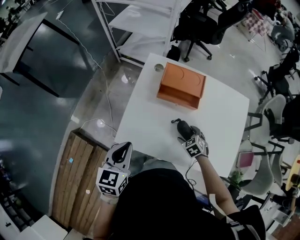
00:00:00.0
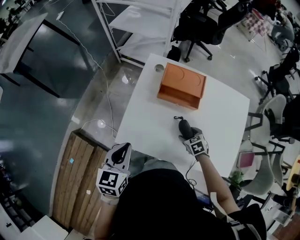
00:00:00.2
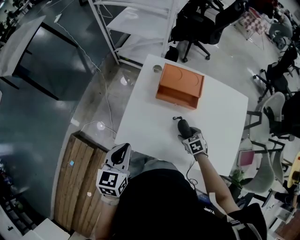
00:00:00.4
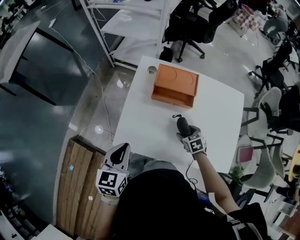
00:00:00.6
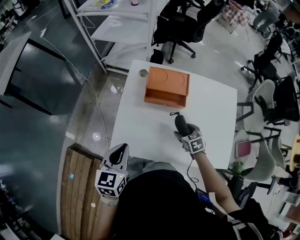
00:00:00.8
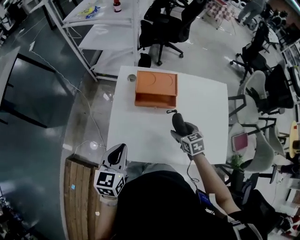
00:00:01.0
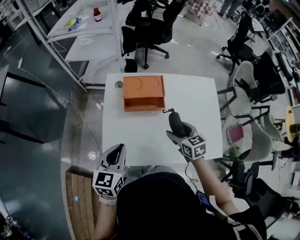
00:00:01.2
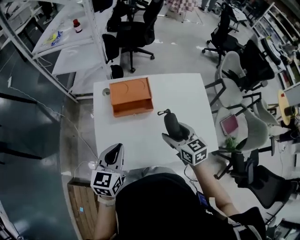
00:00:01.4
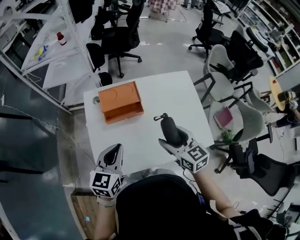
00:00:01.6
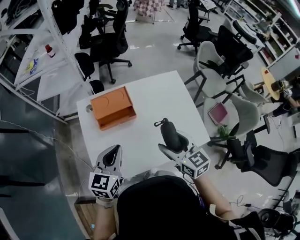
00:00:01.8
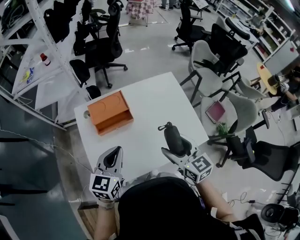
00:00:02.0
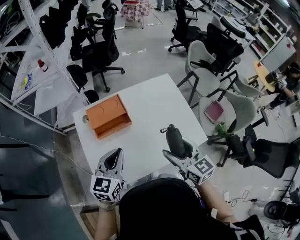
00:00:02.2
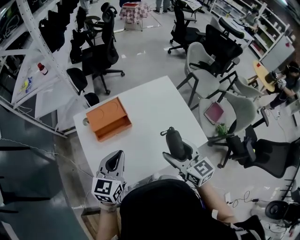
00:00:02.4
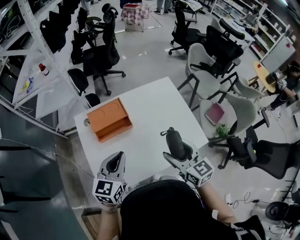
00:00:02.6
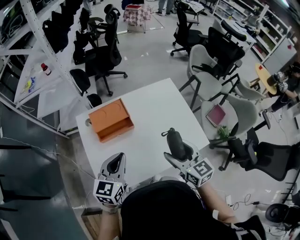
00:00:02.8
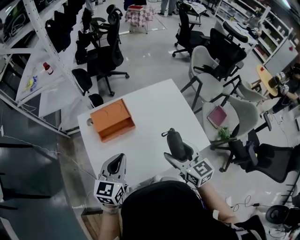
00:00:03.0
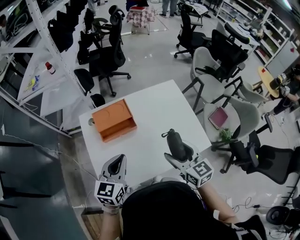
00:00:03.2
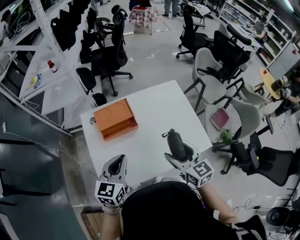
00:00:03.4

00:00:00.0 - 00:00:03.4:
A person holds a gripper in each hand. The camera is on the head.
00:00:00.0 - 00:00:01.6: The right gripper heads upward, covering about 25 cm, and points its fingers about 40 degrees further upward; the left gripper ends up some 15 cm from where it was, and swivels some 30 degrees.
00:00:01.6 - 00:00:03.4: The right gripper heads to the right, covering roughly 5 cm.

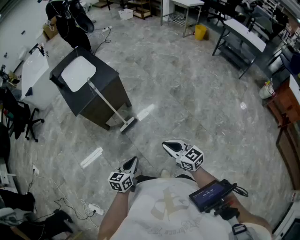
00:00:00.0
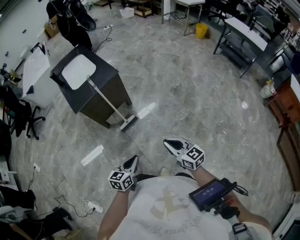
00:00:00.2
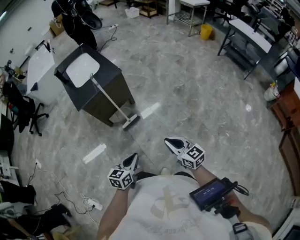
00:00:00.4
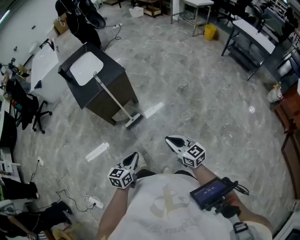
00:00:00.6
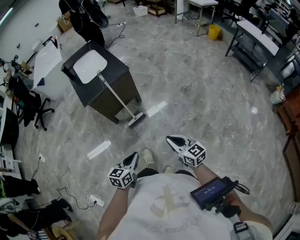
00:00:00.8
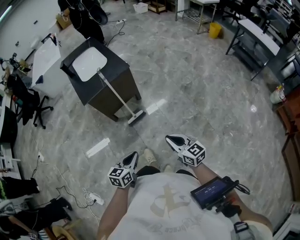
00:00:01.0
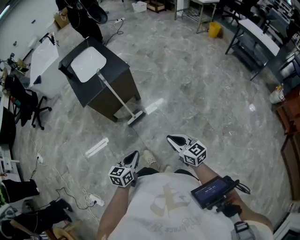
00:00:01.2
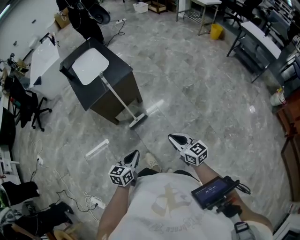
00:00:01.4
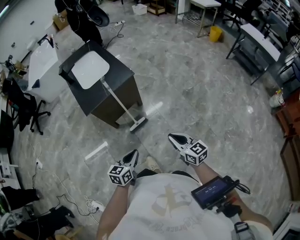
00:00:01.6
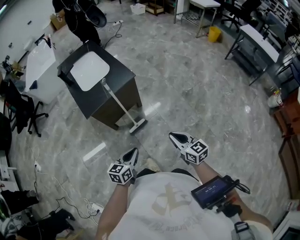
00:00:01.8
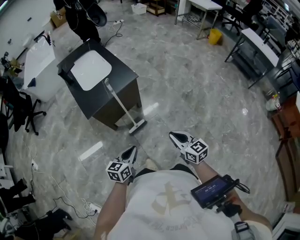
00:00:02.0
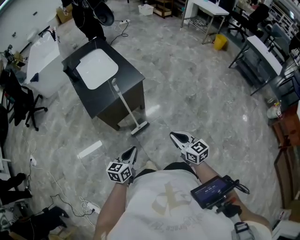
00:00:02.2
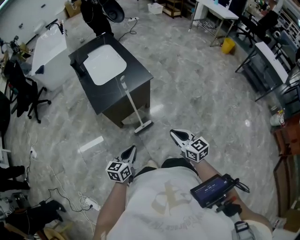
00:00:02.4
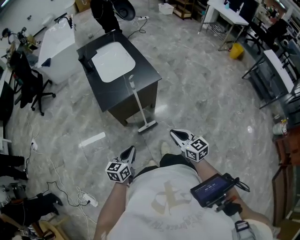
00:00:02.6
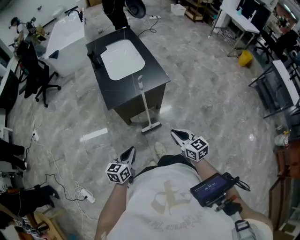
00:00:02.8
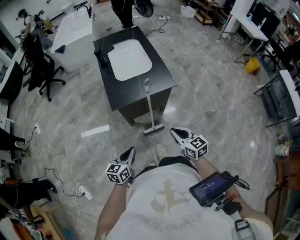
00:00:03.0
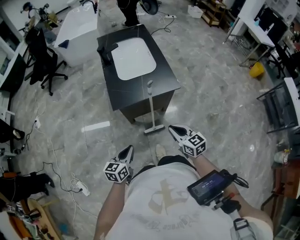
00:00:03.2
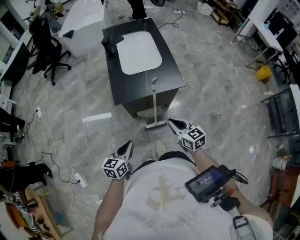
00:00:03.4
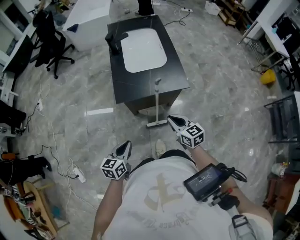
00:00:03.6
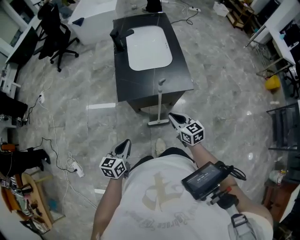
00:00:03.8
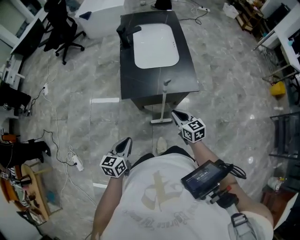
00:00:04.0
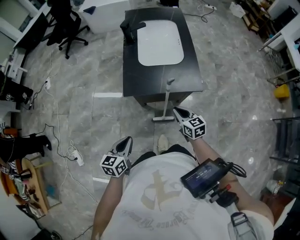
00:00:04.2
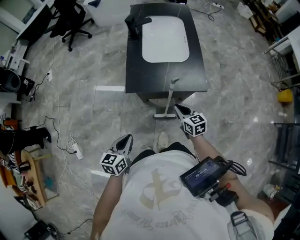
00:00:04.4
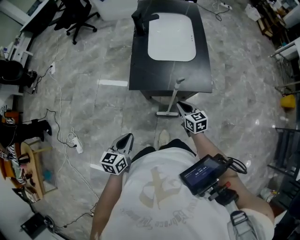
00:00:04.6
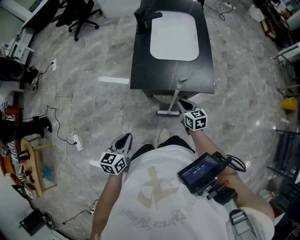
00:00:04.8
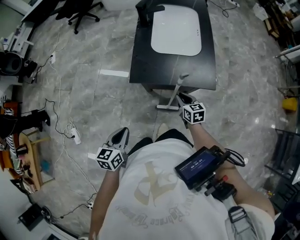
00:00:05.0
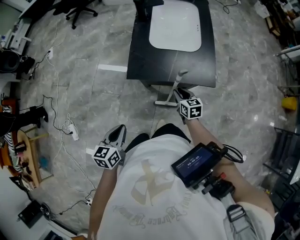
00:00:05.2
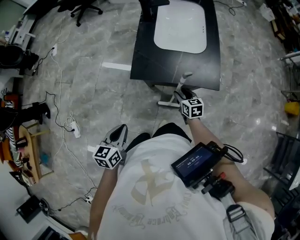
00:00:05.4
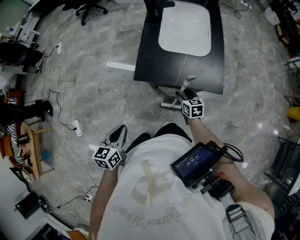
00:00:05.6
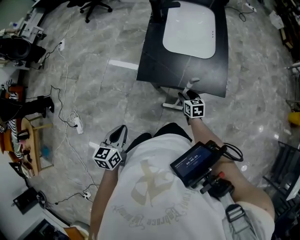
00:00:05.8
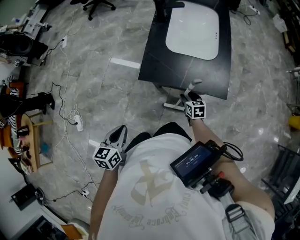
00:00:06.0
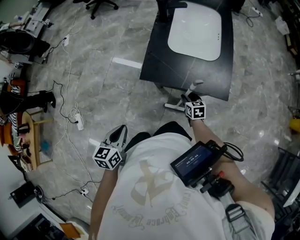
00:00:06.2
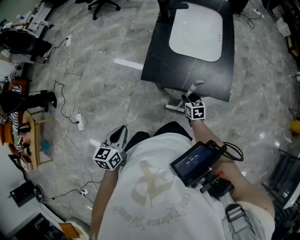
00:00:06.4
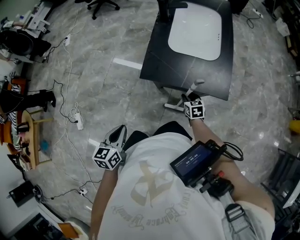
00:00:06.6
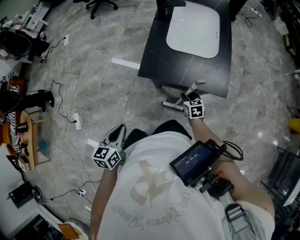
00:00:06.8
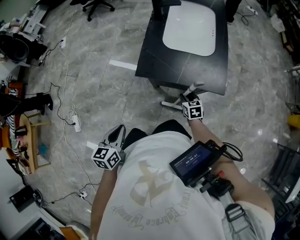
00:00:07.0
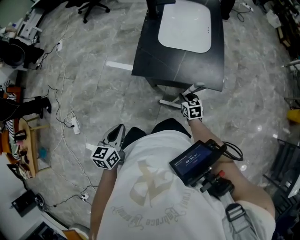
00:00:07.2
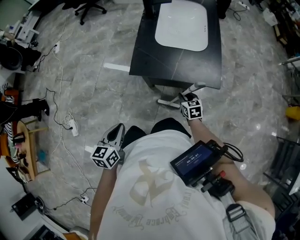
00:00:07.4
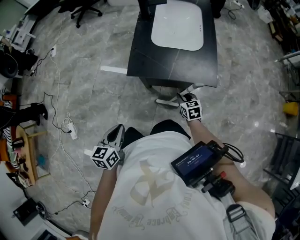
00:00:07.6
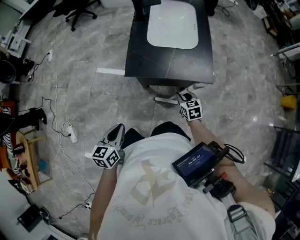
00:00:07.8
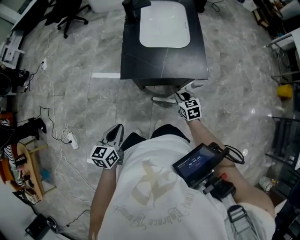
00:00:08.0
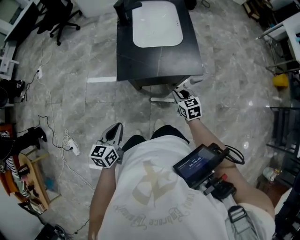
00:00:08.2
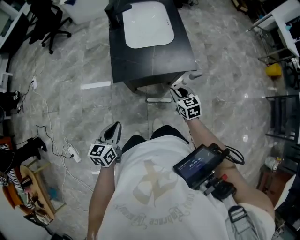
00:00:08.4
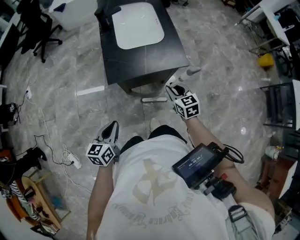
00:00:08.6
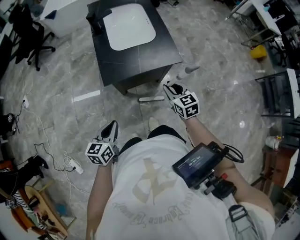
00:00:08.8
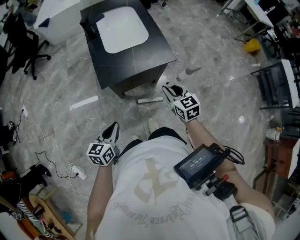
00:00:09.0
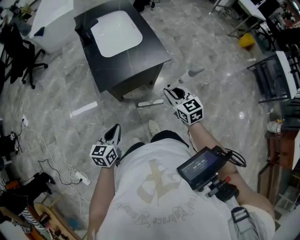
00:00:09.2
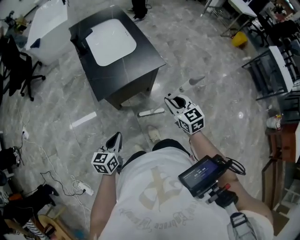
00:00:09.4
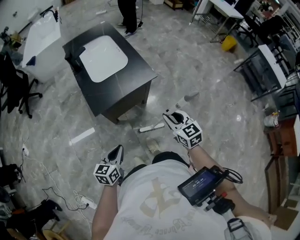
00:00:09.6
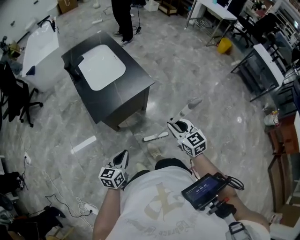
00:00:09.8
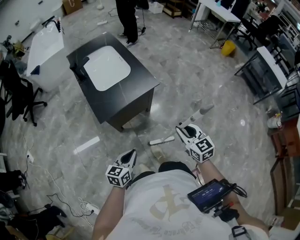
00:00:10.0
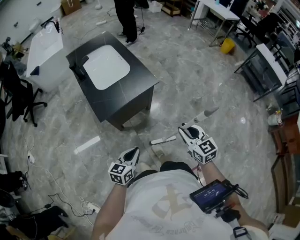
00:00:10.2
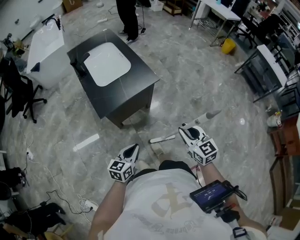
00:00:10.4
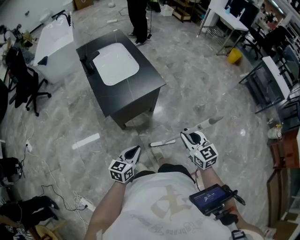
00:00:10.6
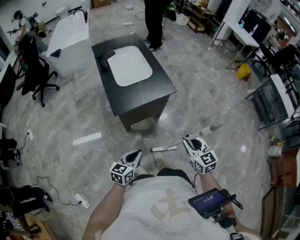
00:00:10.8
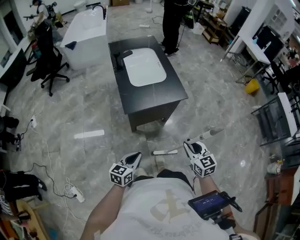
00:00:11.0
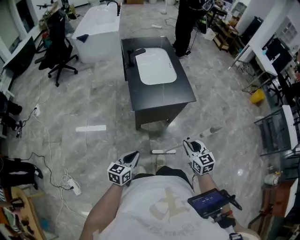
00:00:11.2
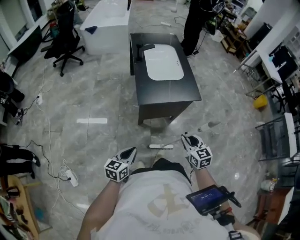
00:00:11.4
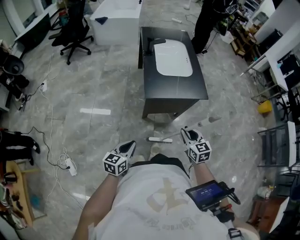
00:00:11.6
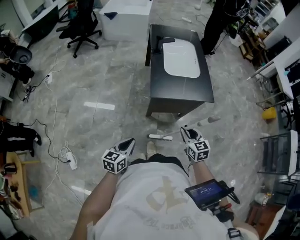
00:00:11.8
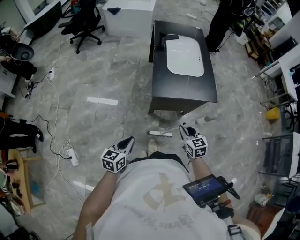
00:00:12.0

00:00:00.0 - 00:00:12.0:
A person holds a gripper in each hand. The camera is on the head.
00:00:00.0 - 00:00:01.6: The left gripper shifts approximately 10 cm forward and to the left. The right gripper is displaced forward by about 10 cm.
00:00:01.6 - 00:00:03.0: The left gripper shifts roughly 15 cm to the left and forward, and rotates approximately 20 degrees; the right gripper shifts approximately 20 cm forward and to the left.
00:00:03.0 - 00:00:04.4: The left gripper moves forward, roughly 5 cm, and changes its angle by some 20 degrees. The right gripper goes about 20 cm forward and downward.
00:00:04.4 - 00:00:06.0: The right gripper goes some 15 cm downward and forward, and opens its fingers.
00:00:06.0 - 00:00:07.6: The right gripper changes place by approximately 5 cm, and closes.
00:00:07.6 - 00:00:09.0: The left gripper rotates about 30 degrees. The right gripper heads upward, covering some 20 cm, and turns by some 20 degrees.
00:00:09.0 - 00:00:10.4: The right gripper shifts roughly 20 cm backward, to the right and upward. Meanwhile the left gripper shifts some 10 cm to the right, and changes its angle by about 20 degrees.
00:00:10.4 - 00:00:12.0: The left gripper changes place by some 20 cm, and turns by some 30 degrees, while the right gripper shifts by about 25 cm, and changes its angle by some 30 degrees.

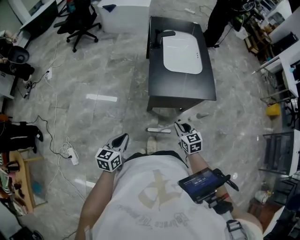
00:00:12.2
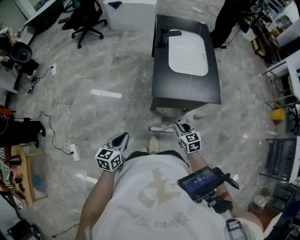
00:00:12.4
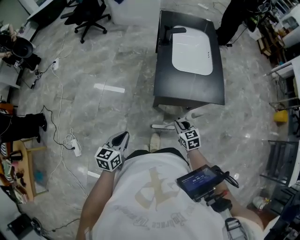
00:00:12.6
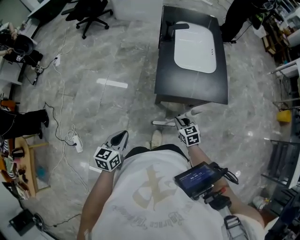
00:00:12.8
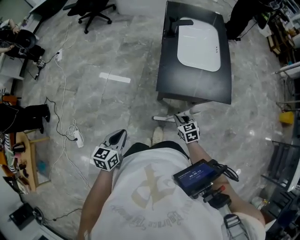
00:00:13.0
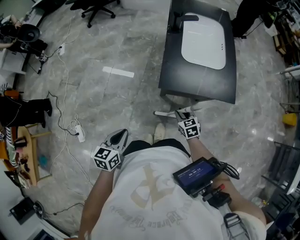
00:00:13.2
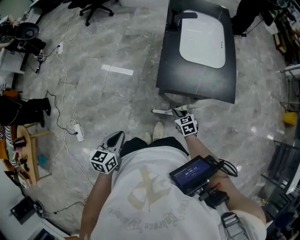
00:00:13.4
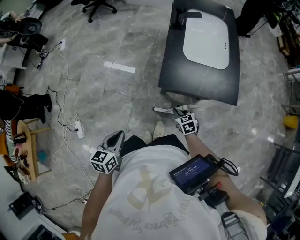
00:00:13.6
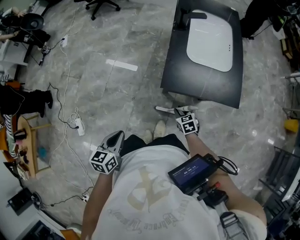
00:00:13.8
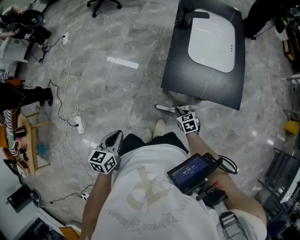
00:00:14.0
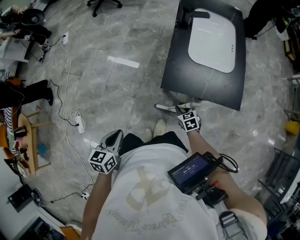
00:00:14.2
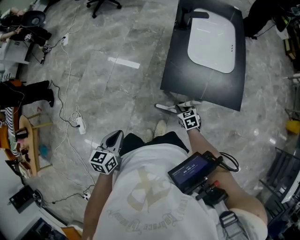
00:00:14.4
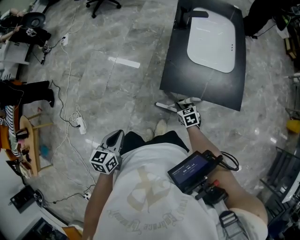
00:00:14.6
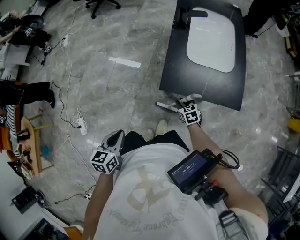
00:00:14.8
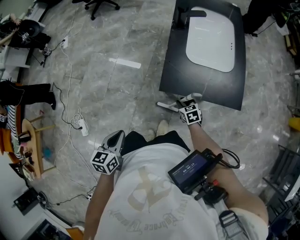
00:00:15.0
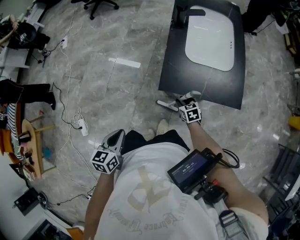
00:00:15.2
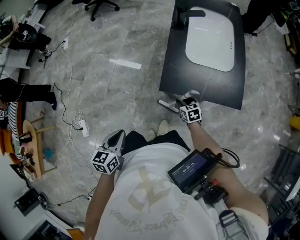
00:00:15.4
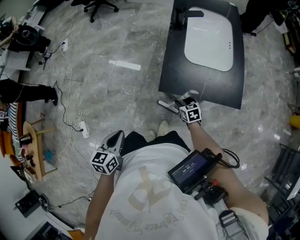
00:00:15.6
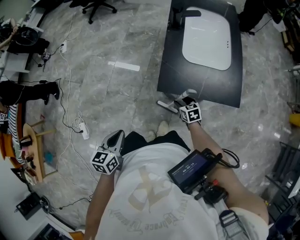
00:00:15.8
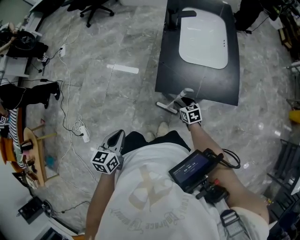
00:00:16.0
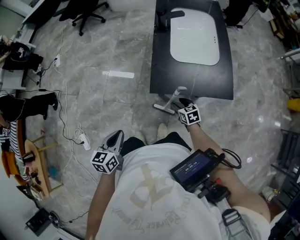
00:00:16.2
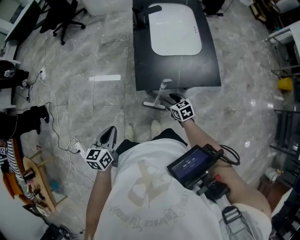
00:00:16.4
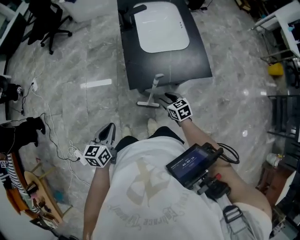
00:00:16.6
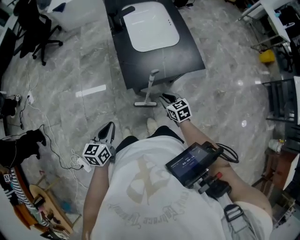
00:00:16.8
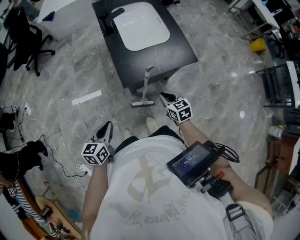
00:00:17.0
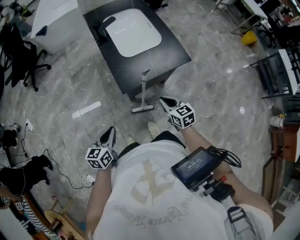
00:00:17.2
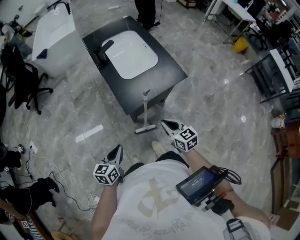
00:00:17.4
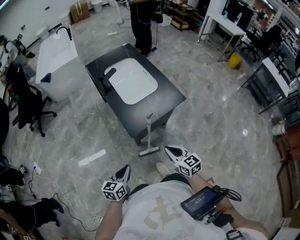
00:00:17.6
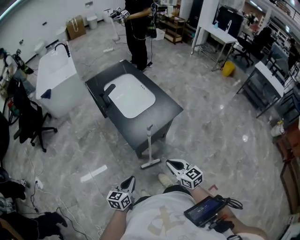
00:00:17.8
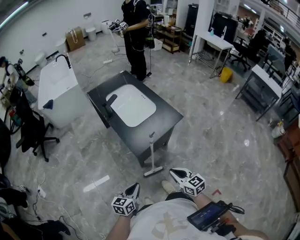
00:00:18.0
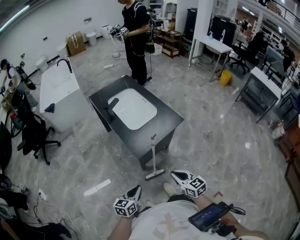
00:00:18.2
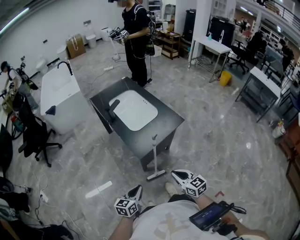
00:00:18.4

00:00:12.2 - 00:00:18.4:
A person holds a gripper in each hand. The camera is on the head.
00:00:12.2 - 00:00:13.8: The right gripper travels downward and forward by about 20 cm, and changes its angle by about 20 degrees.
00:00:13.8 - 00:00:15.4: The right gripper travels forward by some 5 cm.
00:00:15.4 - 00:00:16.8: The right gripper travels upward and backward by some 15 cm, and swivels about 20 degrees. Meanwhile the left gripper shifts roughly 5 cm forward, and swivels roughly 20 degrees.
00:00:16.8 - 00:00:18.4: The left gripper swivels roughly 30 degrees. Meanwhile the right gripper moves upward, about 15 cm, and rotates roughly 30 degrees.

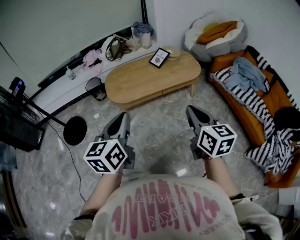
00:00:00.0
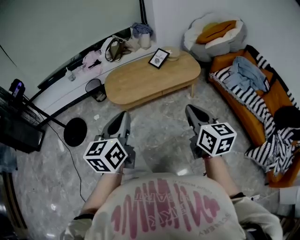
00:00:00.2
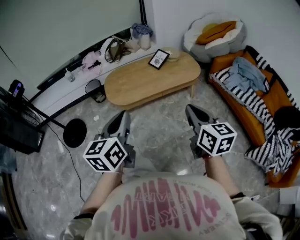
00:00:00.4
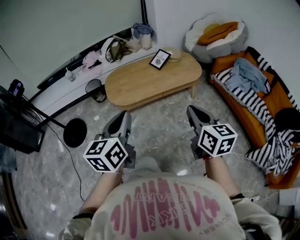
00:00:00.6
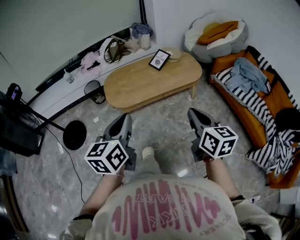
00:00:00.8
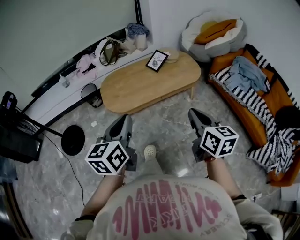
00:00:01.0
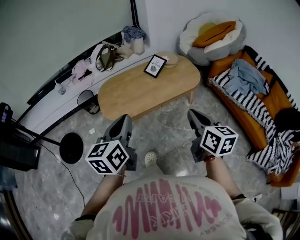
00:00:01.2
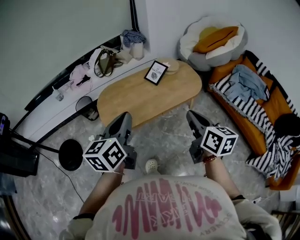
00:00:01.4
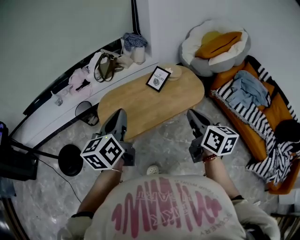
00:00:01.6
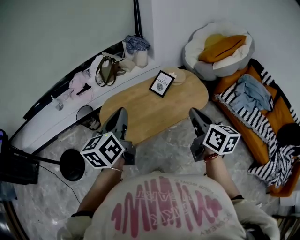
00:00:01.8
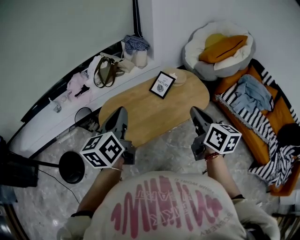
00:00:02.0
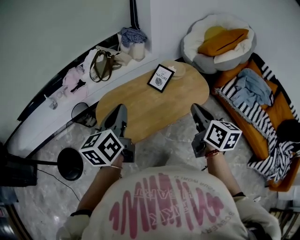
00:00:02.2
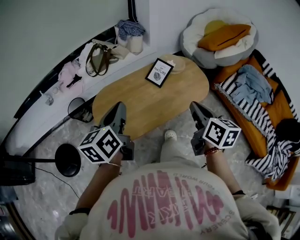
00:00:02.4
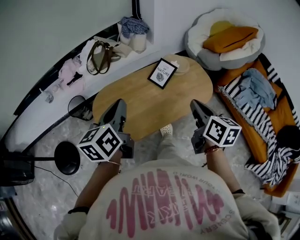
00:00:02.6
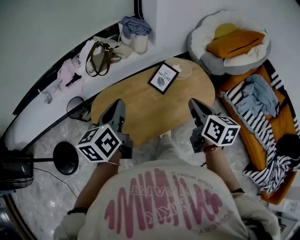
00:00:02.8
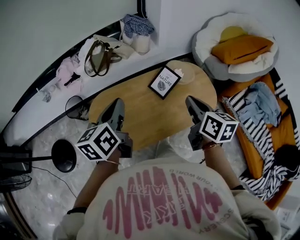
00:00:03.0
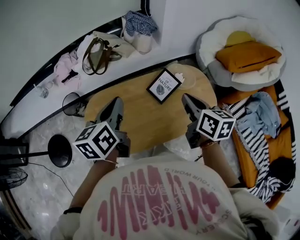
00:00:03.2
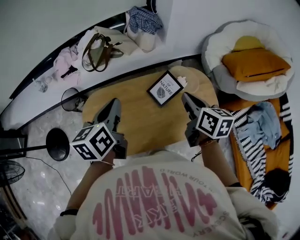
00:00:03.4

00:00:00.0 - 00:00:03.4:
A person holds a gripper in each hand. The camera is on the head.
00:00:00.0 - 00:00:01.6: The two grippers go about 30 cm forward.
00:00:01.6 - 00:00:03.4: Both grippers move forward, about 40 cm. The right gripper turns by roughly 20 degrees.
